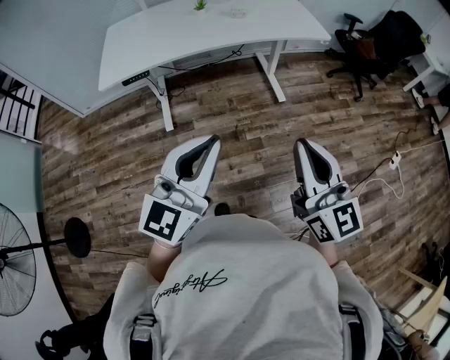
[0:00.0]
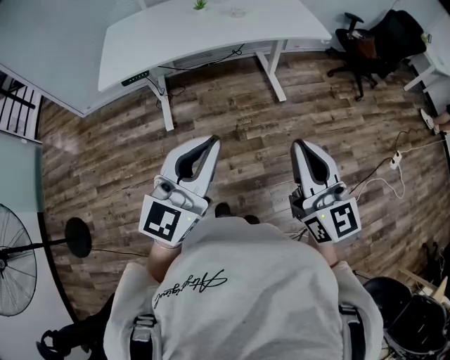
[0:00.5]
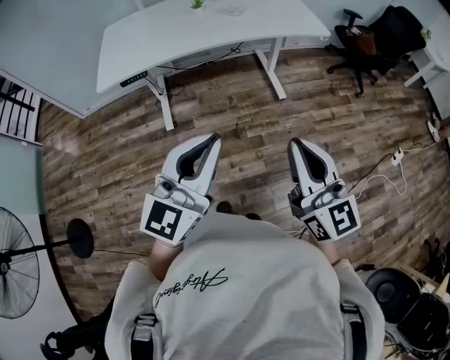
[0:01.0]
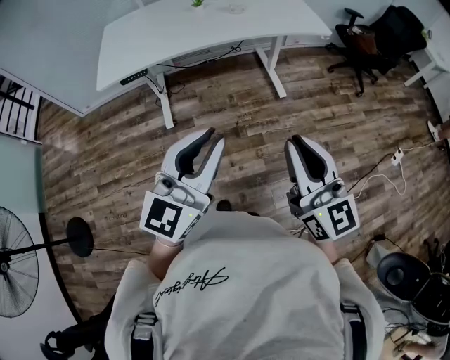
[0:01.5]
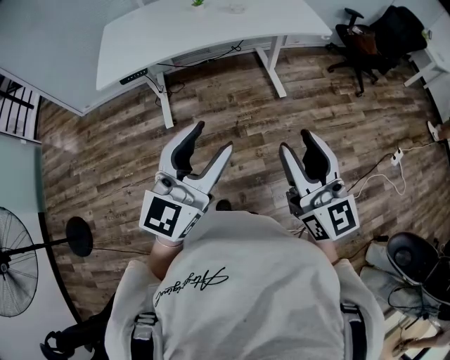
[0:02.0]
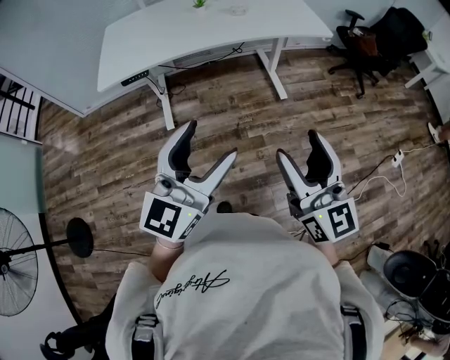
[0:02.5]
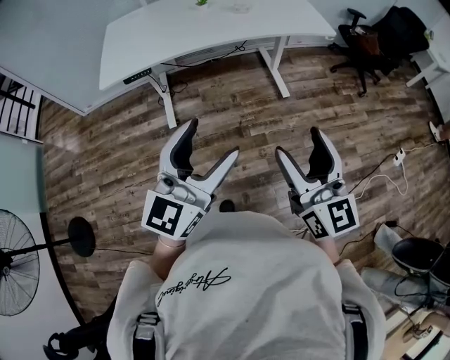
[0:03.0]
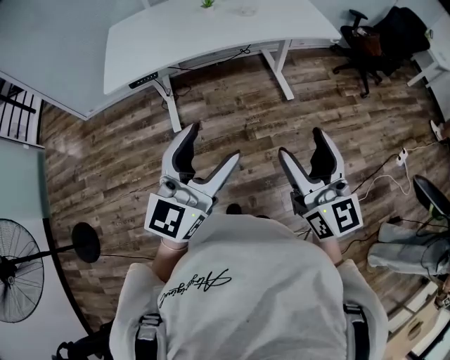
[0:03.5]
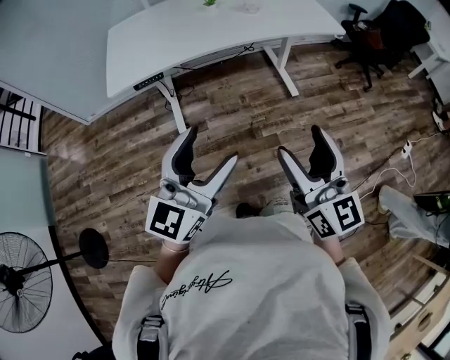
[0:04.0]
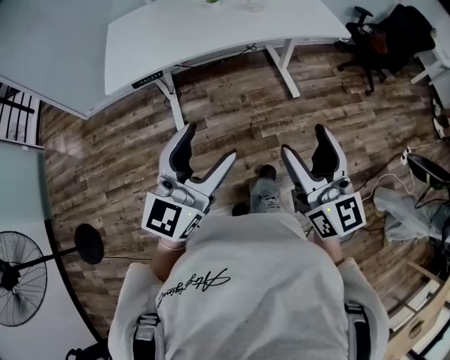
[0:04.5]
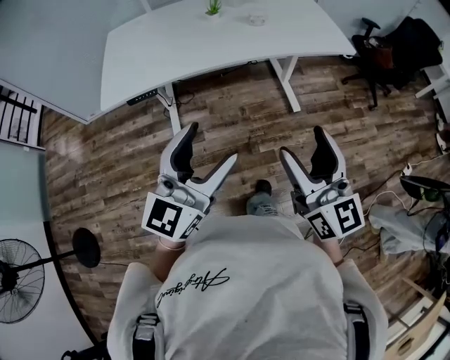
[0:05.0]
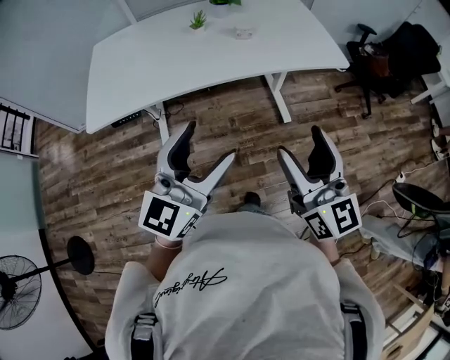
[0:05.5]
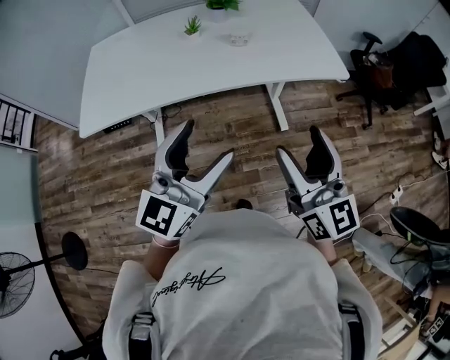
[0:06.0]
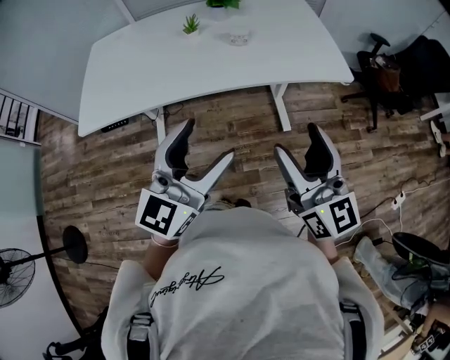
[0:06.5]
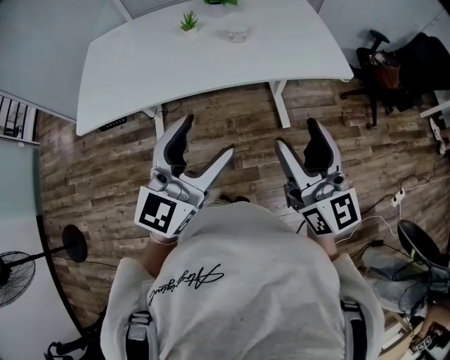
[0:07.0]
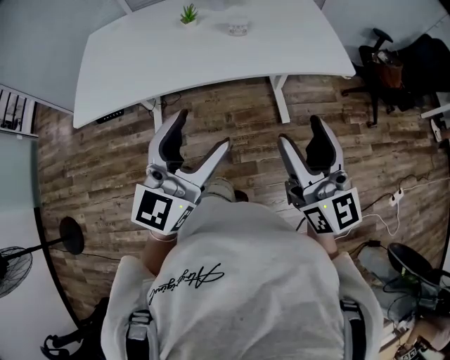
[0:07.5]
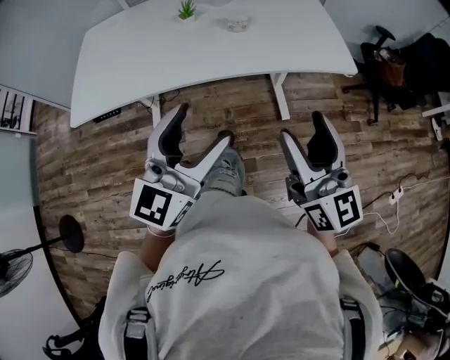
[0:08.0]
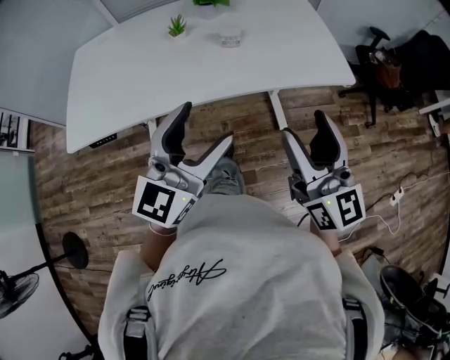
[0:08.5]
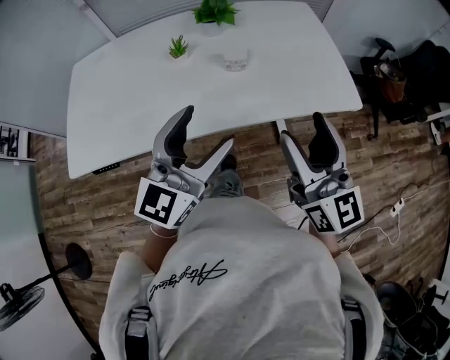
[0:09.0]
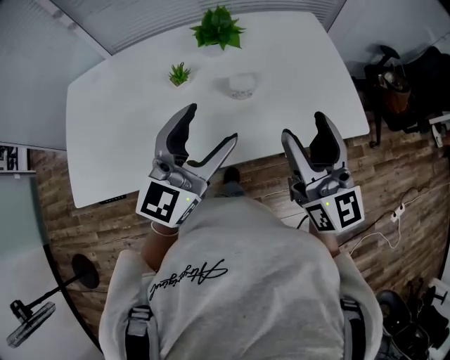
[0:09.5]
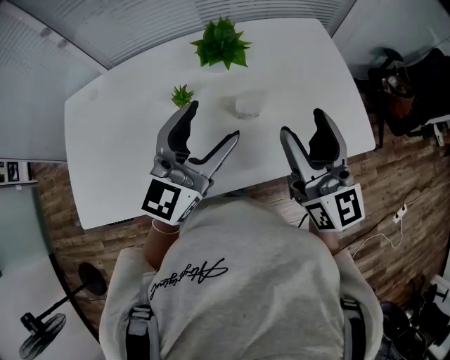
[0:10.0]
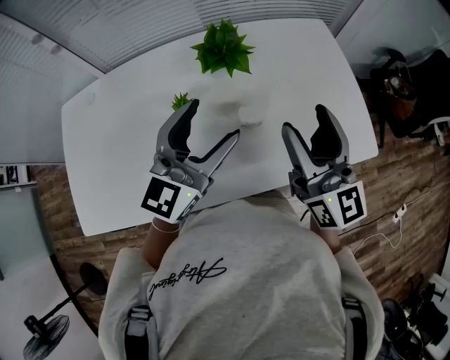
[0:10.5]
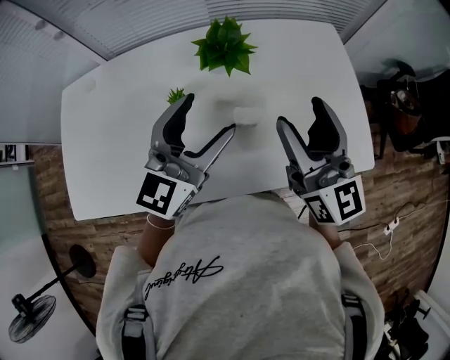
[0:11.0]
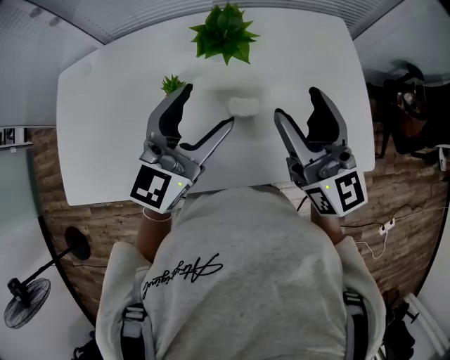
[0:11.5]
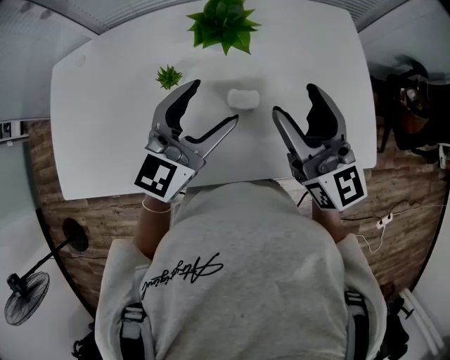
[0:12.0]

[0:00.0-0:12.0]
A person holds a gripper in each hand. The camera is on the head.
0:00.0 to 0:02.0: The left gripper opens its fingers; the right gripper opens its fingers.
0:02.0 to 0:04.0: The grippers both shift to the left by some 10 cm. The right gripper opens its fingers.
0:04.0 to 0:06.0: Both grippers travel together forward and to the right, some 25 cm.
0:06.0 to 0:08.0: The right gripper ends up approximately 5 cm from where it was. The left gripper changes place by roughly 5 cm.
0:08.0 to 0:10.0: Both grippers move forward, approximately 35 cm.
0:10.0 to 0:12.0: The right gripper goes about 10 cm forward, while the left gripper shifts approximately 10 cm forward and downward.

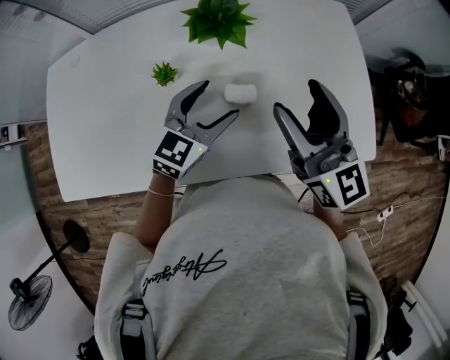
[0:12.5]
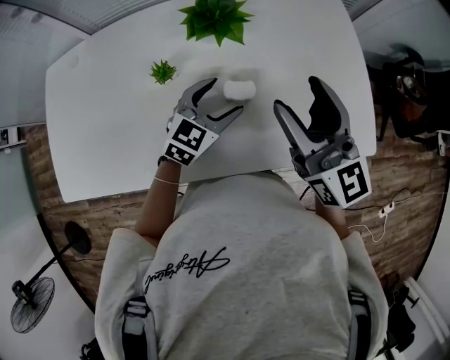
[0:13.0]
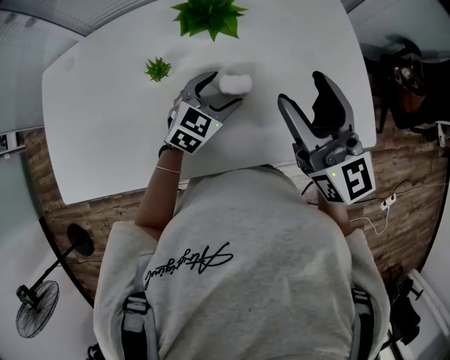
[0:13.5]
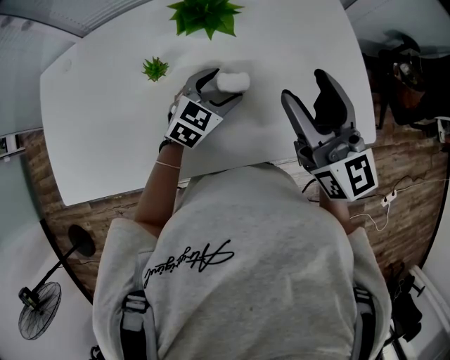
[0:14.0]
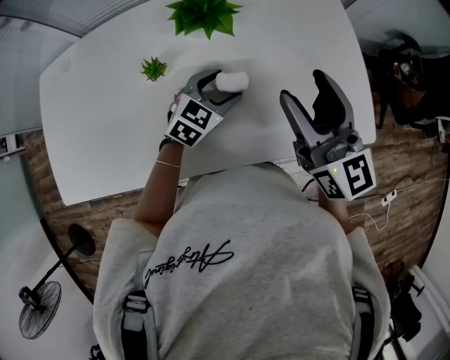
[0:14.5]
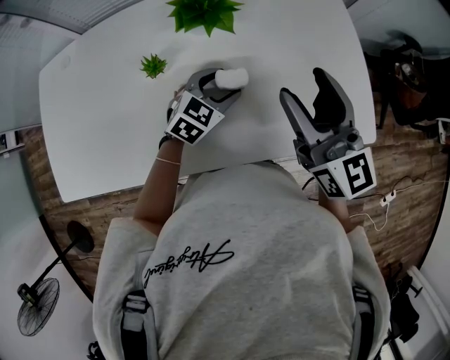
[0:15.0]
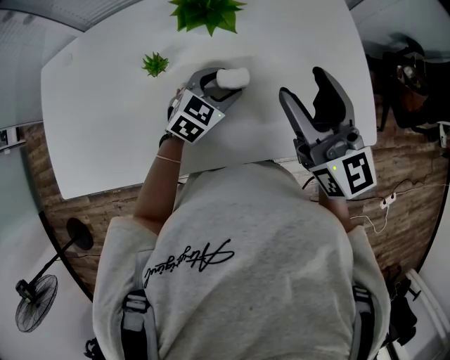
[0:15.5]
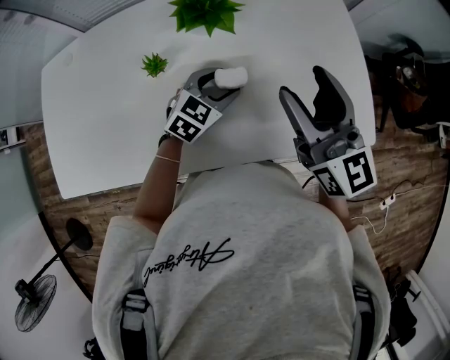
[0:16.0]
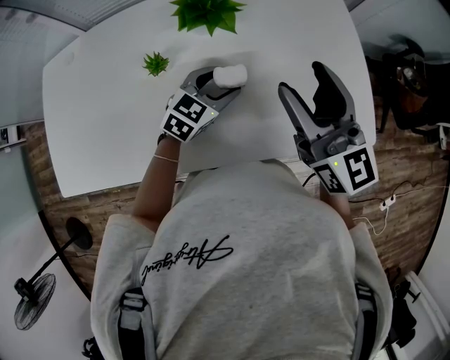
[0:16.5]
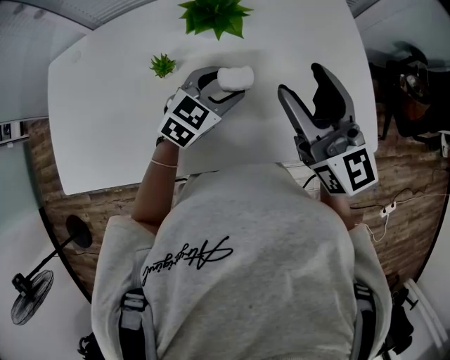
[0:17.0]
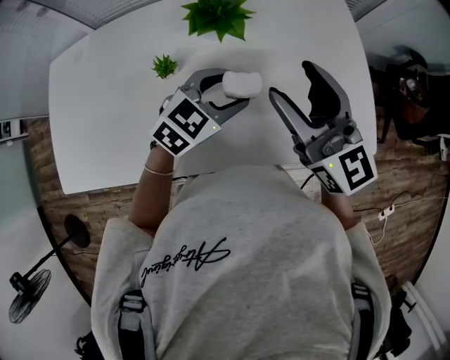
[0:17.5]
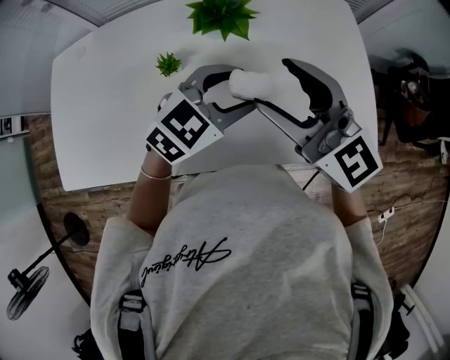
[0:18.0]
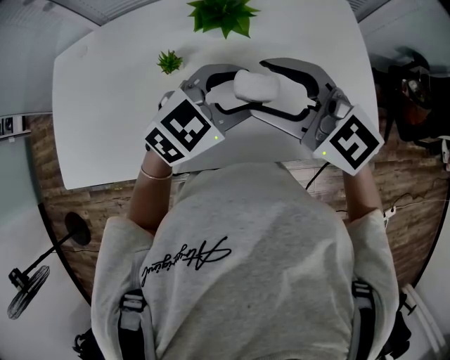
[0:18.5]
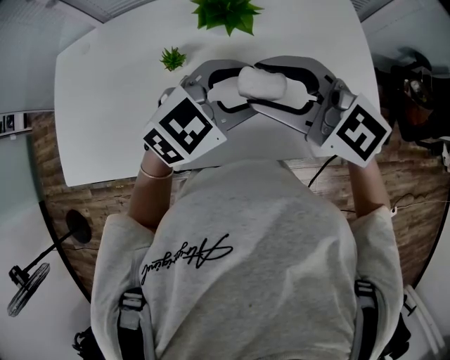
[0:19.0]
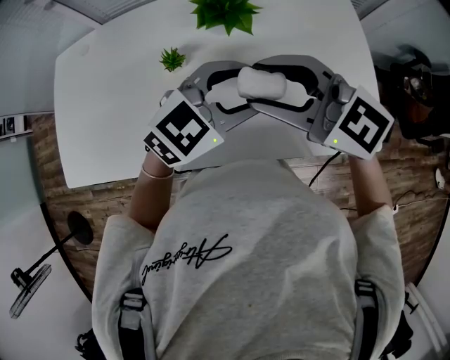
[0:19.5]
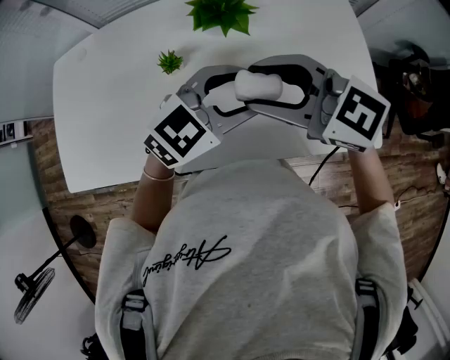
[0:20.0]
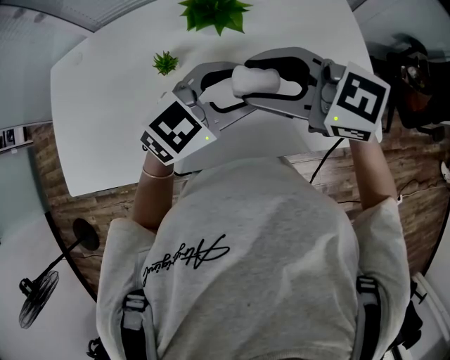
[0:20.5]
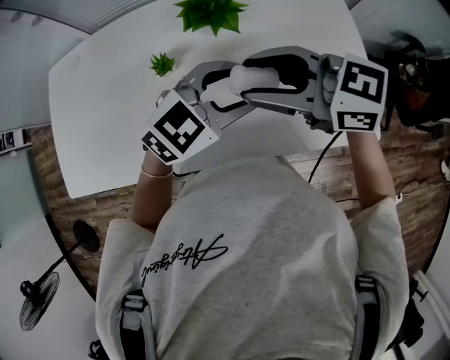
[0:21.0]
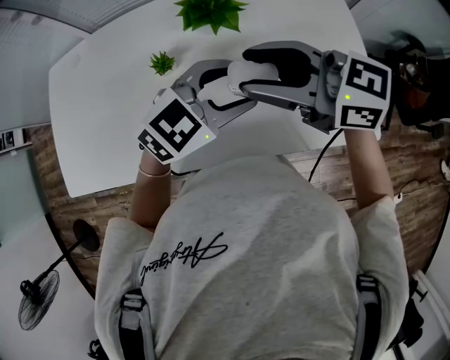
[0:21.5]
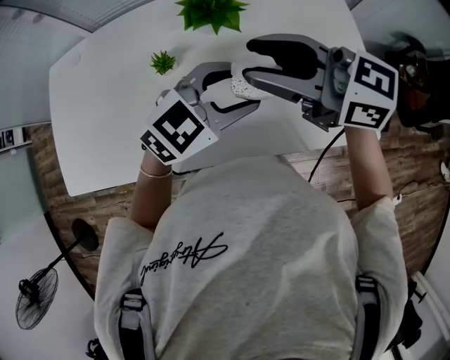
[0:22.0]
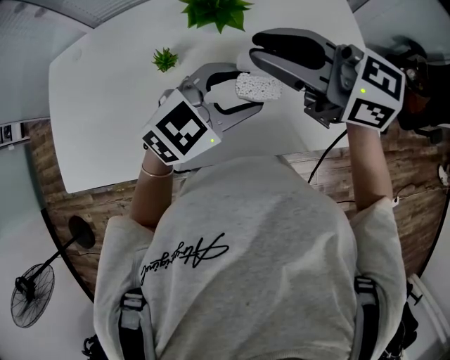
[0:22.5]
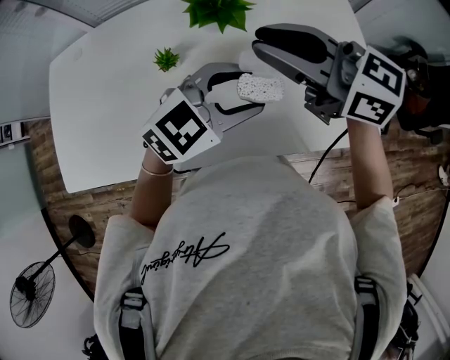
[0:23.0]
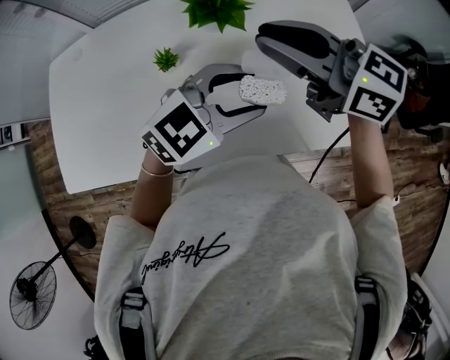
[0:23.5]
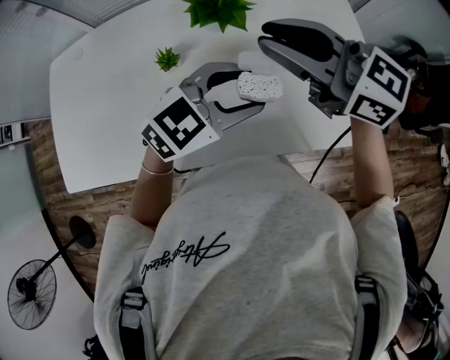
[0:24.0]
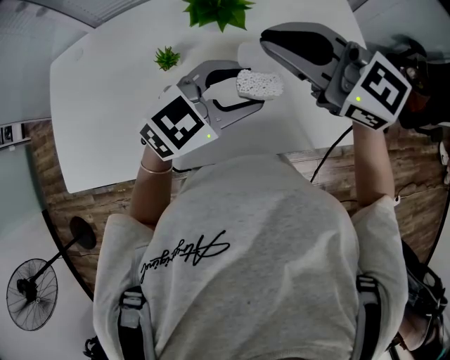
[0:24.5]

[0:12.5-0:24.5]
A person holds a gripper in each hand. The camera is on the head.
0:12.5 to 0:14.5: The left gripper goes some 10 cm downward.
0:14.5 to 0:16.5: Neither gripper changes place.
0:16.5 to 0:18.5: The right gripper goes about 10 cm to the left, and changes its angle by approximately 40 degrees. Meanwhile the left gripper moves upward, approximately 15 cm.
0:18.5 to 0:20.5: The grippers stay close to where they were, moving slightly.
0:20.5 to 0:22.5: The right gripper moves about 5 cm, and closes its fingers.
0:22.5 to 0:24.5: The grippers stay close to where they were, moving slightly.

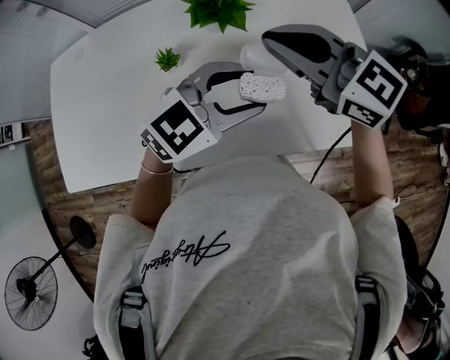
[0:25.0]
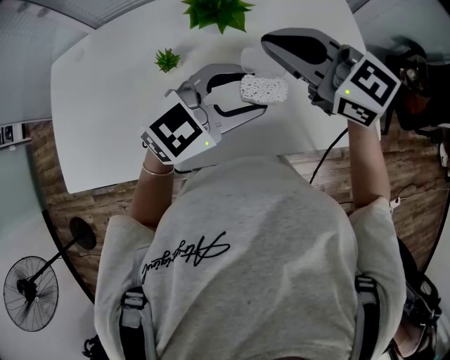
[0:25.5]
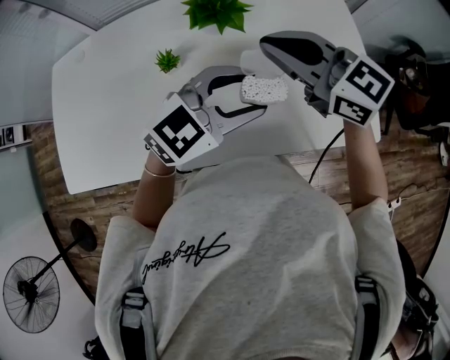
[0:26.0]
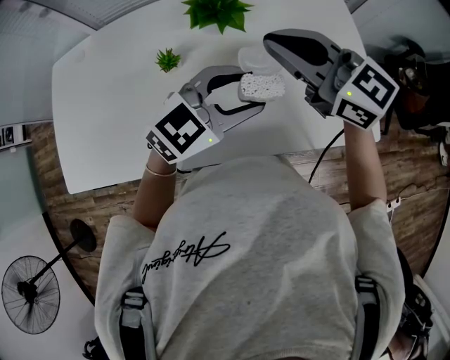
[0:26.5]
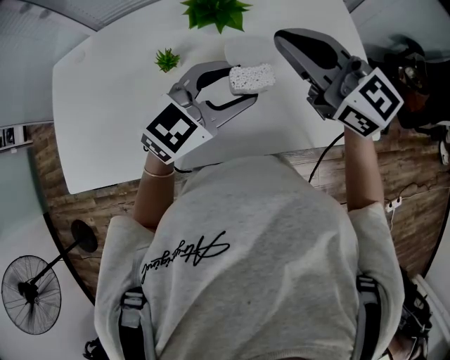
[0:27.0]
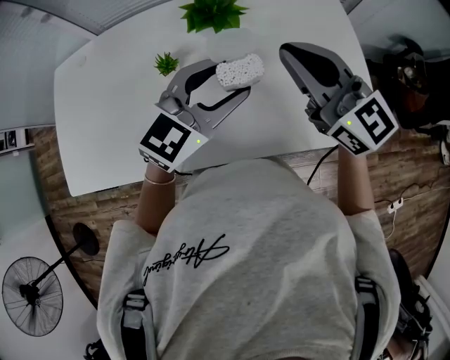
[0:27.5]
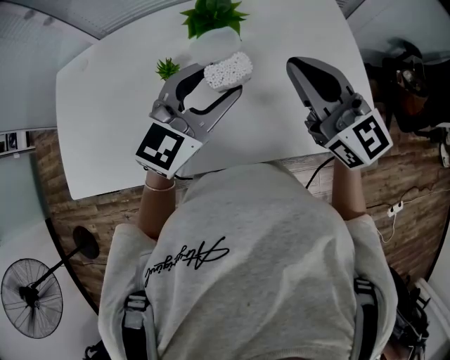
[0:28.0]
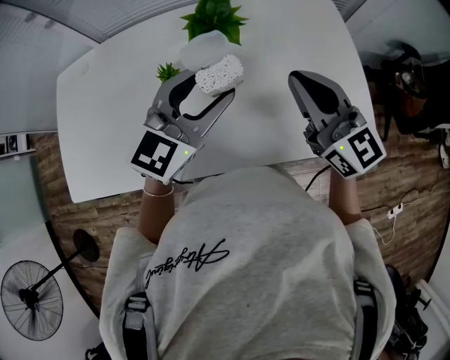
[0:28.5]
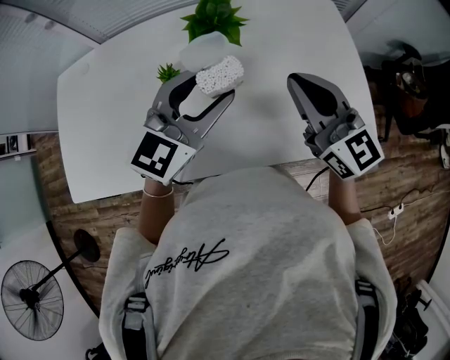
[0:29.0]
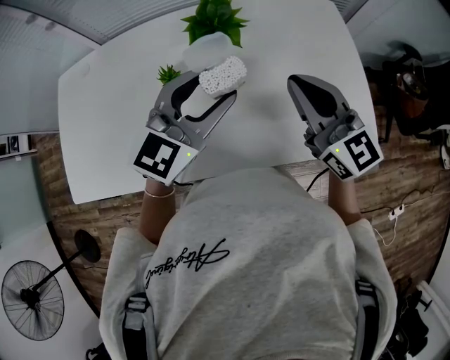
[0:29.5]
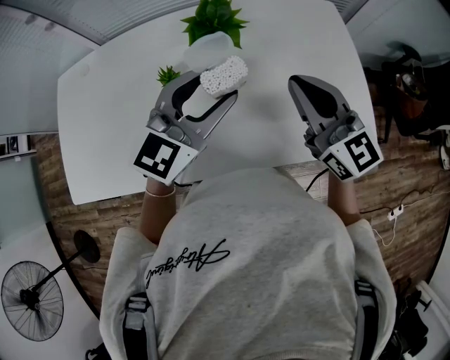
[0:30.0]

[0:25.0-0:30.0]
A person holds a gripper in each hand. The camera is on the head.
0:25.0 to 0:27.5: There are only small adjustments of the grippers.
0:27.5 to 0:30.0: The grippers move only a little.
